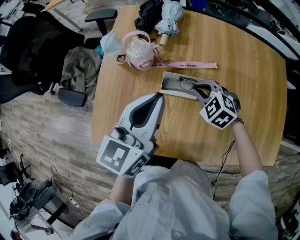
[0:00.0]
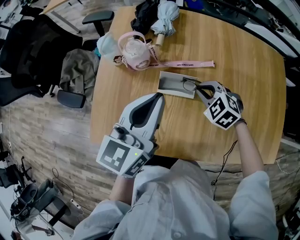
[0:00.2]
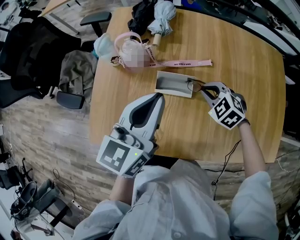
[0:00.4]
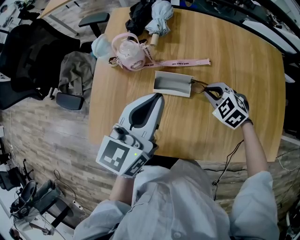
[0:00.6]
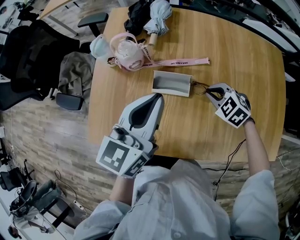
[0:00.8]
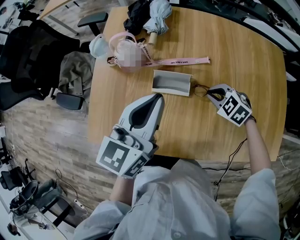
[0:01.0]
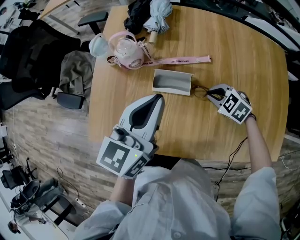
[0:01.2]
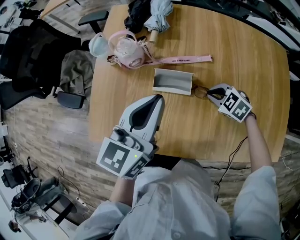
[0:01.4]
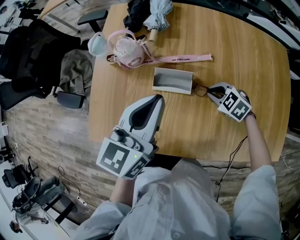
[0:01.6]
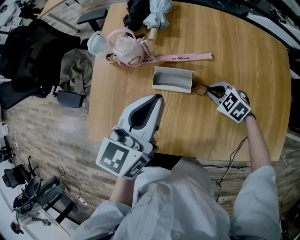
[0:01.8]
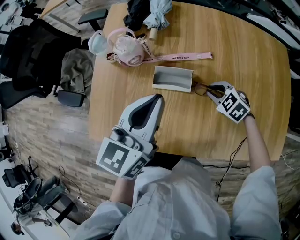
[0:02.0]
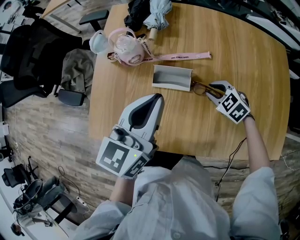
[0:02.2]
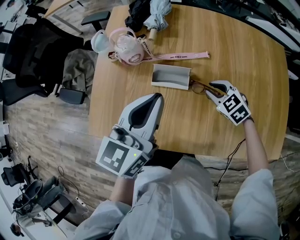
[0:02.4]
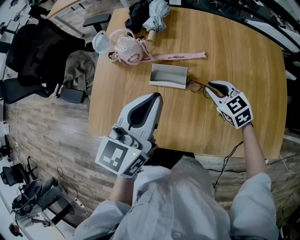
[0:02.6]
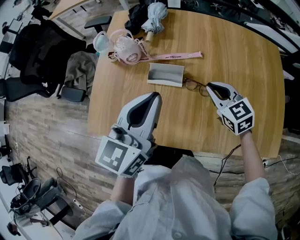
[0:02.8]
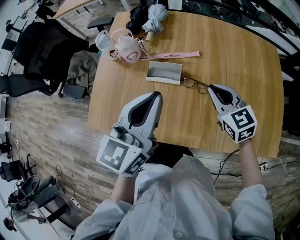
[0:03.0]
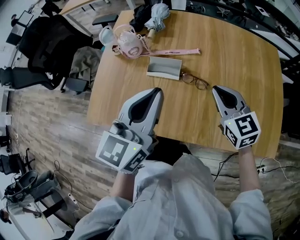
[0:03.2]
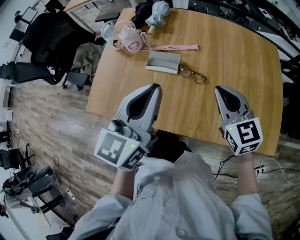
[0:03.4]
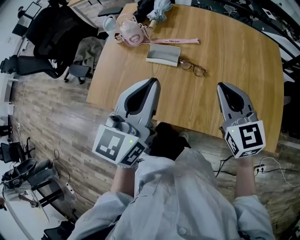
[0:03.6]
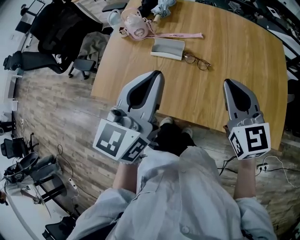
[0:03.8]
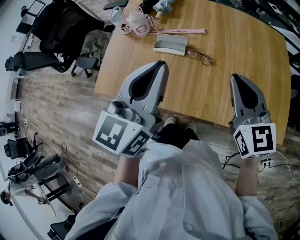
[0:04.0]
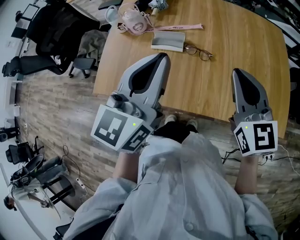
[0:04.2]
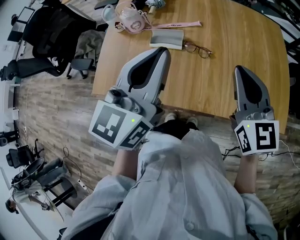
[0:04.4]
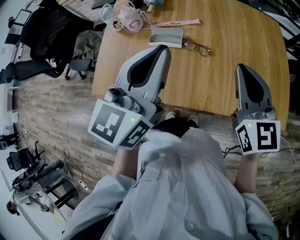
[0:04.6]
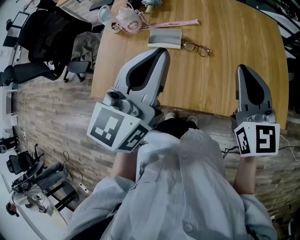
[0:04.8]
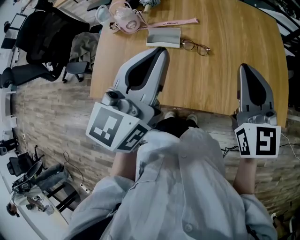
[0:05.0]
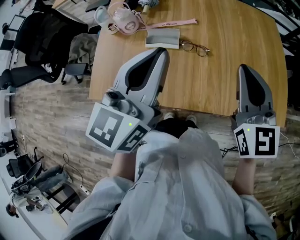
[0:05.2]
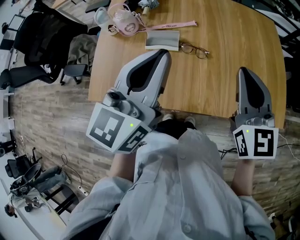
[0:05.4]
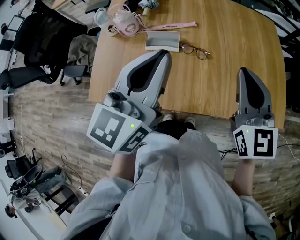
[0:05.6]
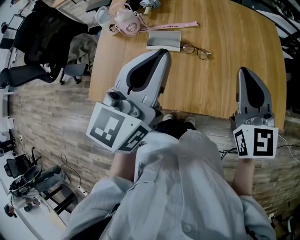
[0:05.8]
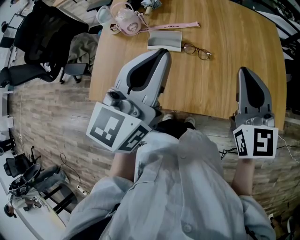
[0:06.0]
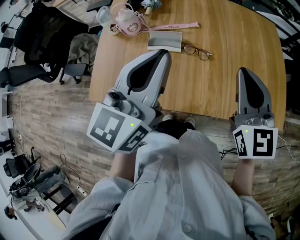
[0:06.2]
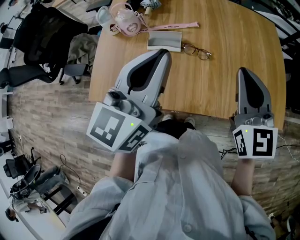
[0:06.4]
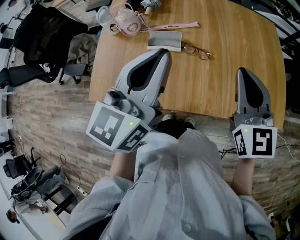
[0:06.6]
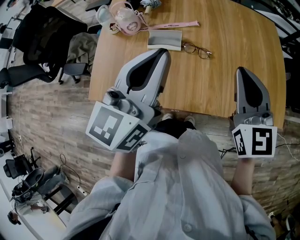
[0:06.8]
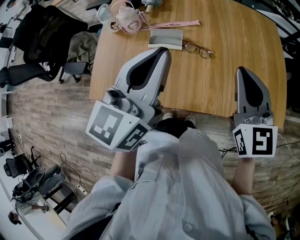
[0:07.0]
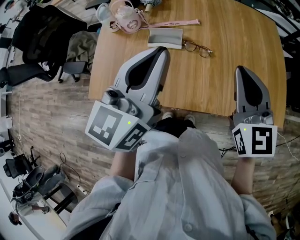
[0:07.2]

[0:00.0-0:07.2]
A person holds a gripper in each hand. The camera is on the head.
0:00.0 to 0:01.4: The right gripper shifts approximately 10 cm to the right, downward and backward.
0:01.4 to 0:02.8: The left gripper shifts roughly 5 cm backward. The right gripper travels upward by roughly 10 cm, and turns by approximately 40 degrees.
0:02.8 to 0:04.4: The left gripper moves backward, upward and to the right, about 15 cm, while the right gripper heads backward, upward and to the right, covering some 25 cm, and rotates roughly 30 degrees.
0:04.4 to 0:05.8: The left gripper moves some 5 cm.
0:05.8 to 0:07.2: The grippers move only a little.

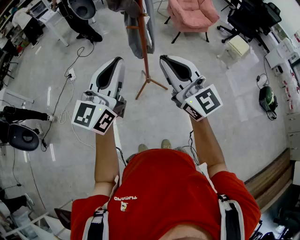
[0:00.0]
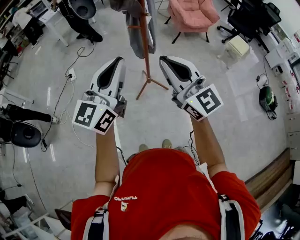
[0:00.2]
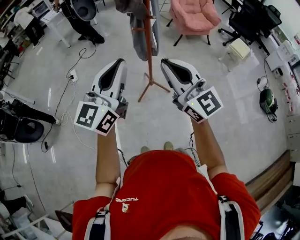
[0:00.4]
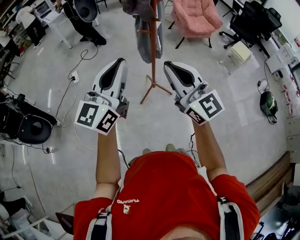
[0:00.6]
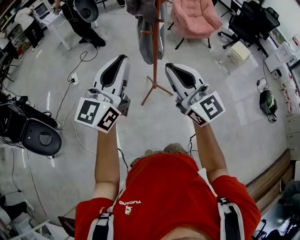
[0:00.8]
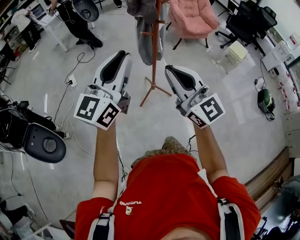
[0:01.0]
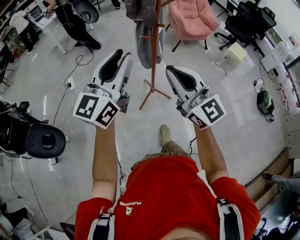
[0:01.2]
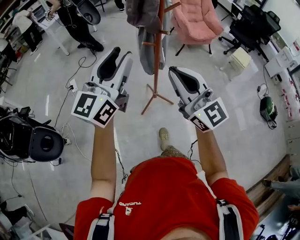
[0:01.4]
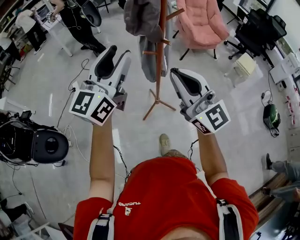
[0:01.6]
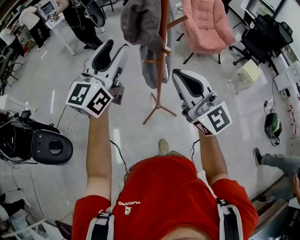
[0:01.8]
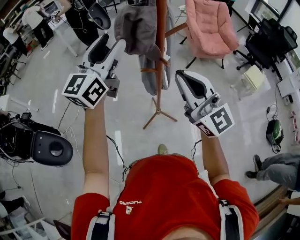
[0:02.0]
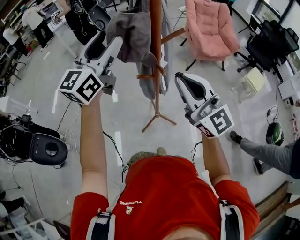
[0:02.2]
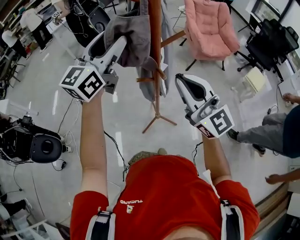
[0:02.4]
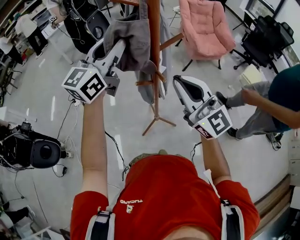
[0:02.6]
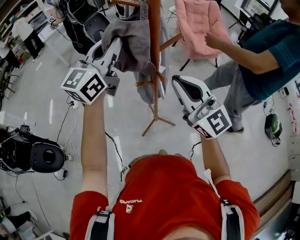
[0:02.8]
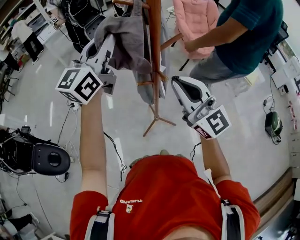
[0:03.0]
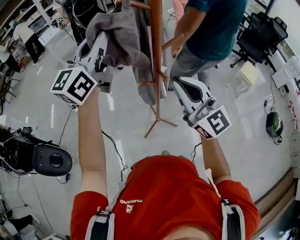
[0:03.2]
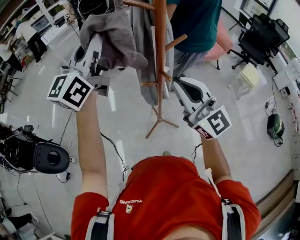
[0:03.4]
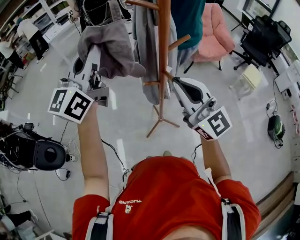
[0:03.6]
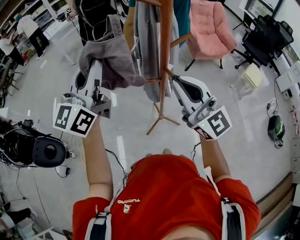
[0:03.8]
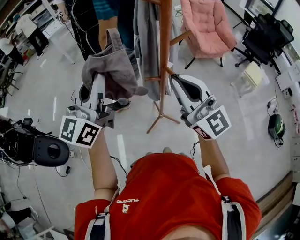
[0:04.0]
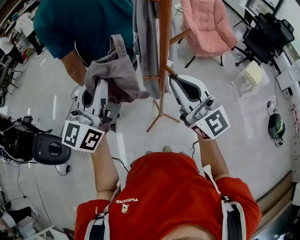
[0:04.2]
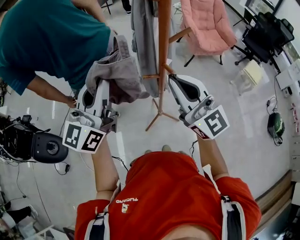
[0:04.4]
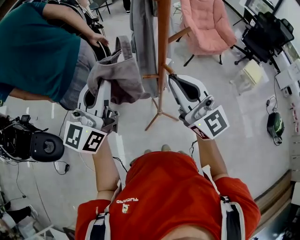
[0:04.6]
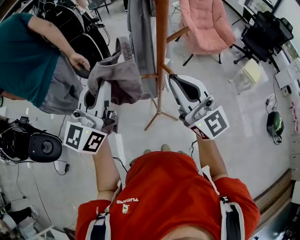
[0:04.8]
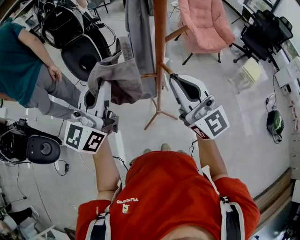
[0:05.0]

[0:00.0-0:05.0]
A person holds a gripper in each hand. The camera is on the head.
0:00.0 to 0:01.6: The grippers both shift forward by roughly 15 cm. The left gripper opens.
0:01.6 to 0:03.4: The right gripper is displaced forward by approximately 10 cm, while the left gripper moves forward and upward, roughly 20 cm, and closes its fingers.
0:03.4 to 0:05.0: The left gripper goes approximately 15 cm downward and backward.

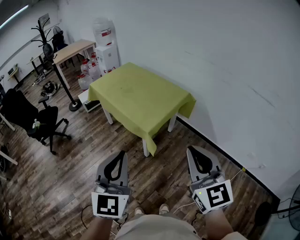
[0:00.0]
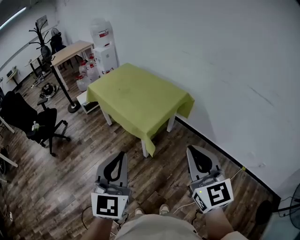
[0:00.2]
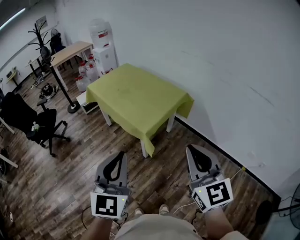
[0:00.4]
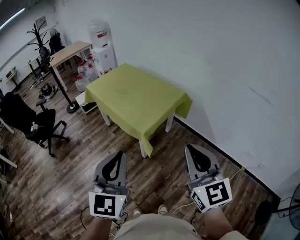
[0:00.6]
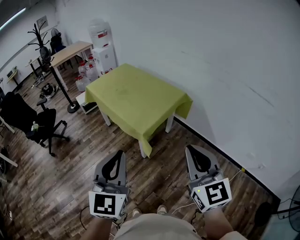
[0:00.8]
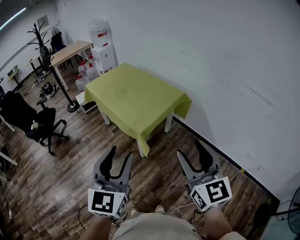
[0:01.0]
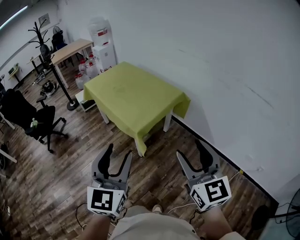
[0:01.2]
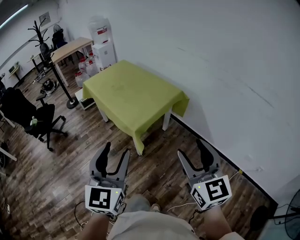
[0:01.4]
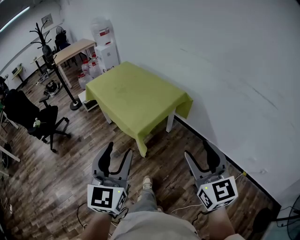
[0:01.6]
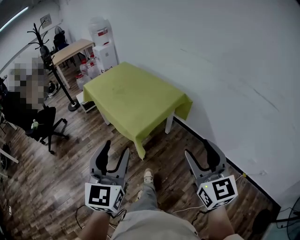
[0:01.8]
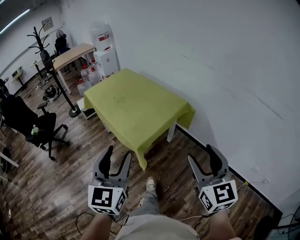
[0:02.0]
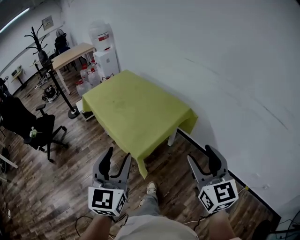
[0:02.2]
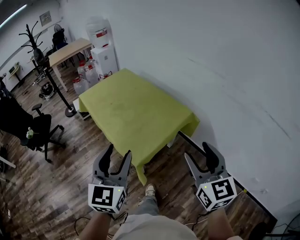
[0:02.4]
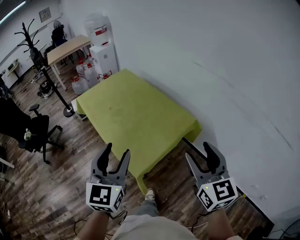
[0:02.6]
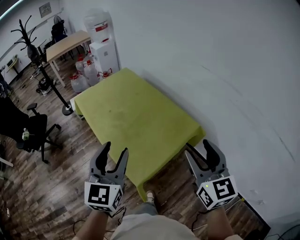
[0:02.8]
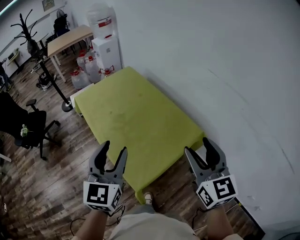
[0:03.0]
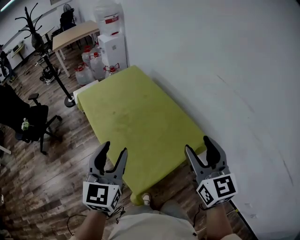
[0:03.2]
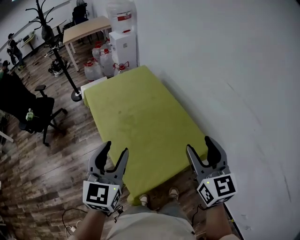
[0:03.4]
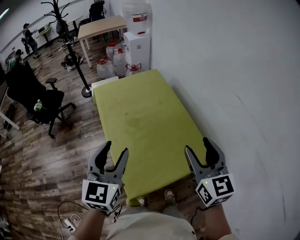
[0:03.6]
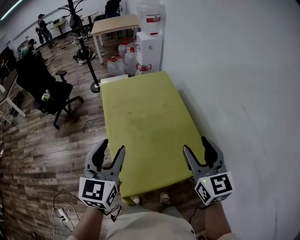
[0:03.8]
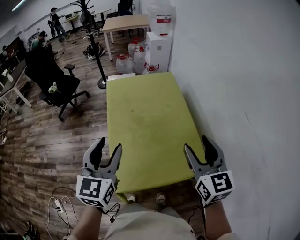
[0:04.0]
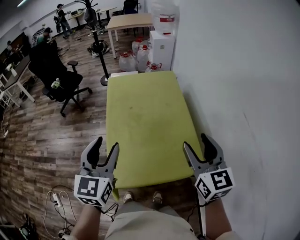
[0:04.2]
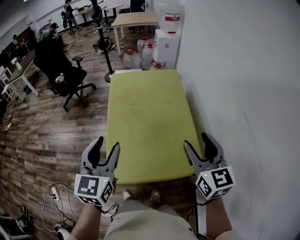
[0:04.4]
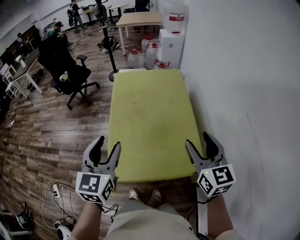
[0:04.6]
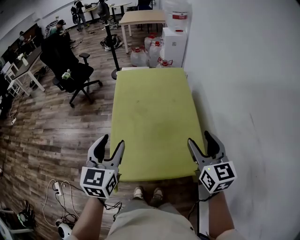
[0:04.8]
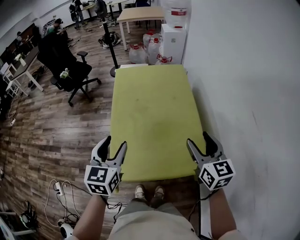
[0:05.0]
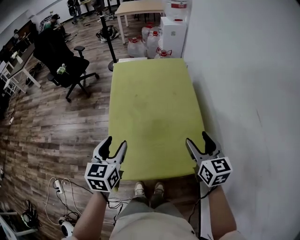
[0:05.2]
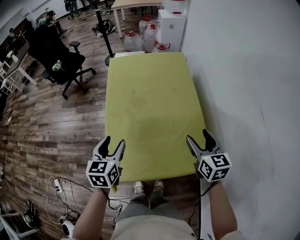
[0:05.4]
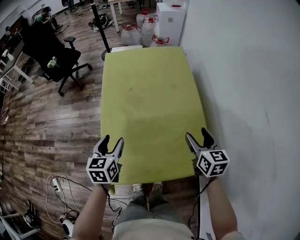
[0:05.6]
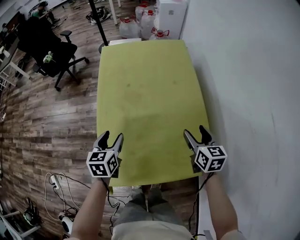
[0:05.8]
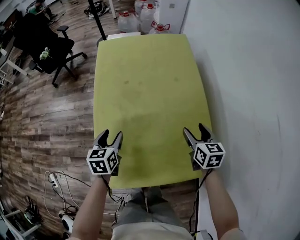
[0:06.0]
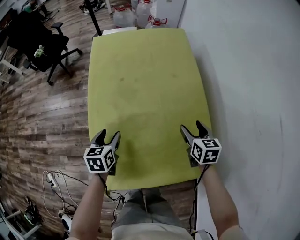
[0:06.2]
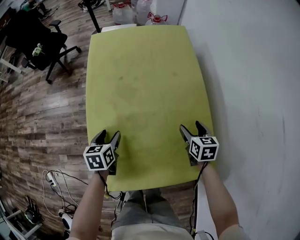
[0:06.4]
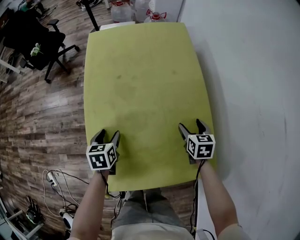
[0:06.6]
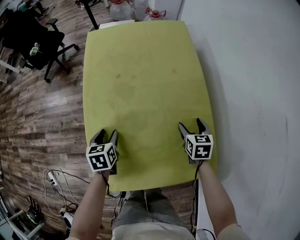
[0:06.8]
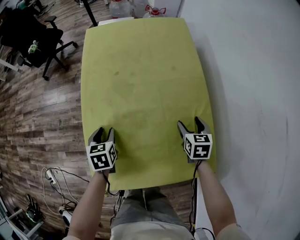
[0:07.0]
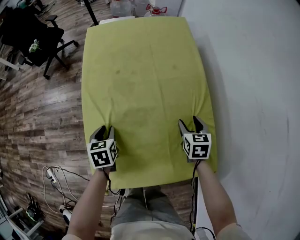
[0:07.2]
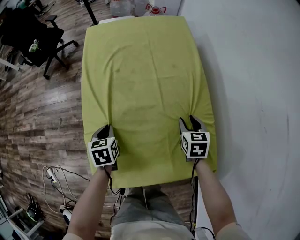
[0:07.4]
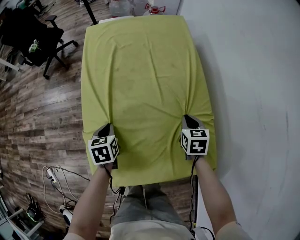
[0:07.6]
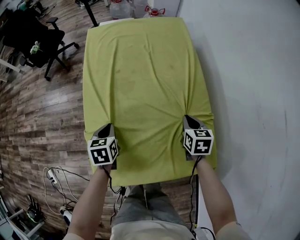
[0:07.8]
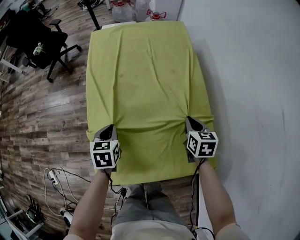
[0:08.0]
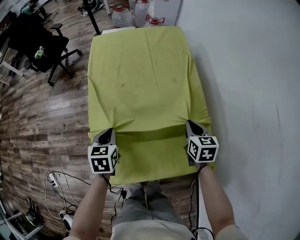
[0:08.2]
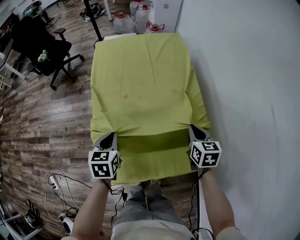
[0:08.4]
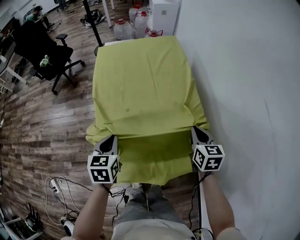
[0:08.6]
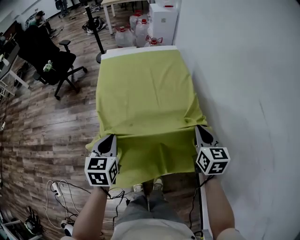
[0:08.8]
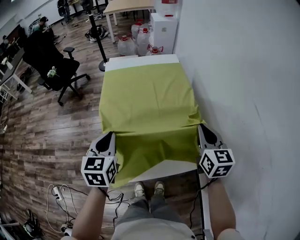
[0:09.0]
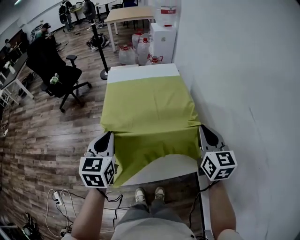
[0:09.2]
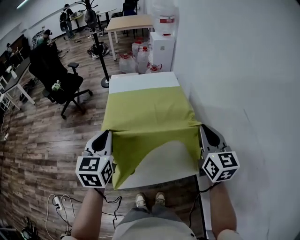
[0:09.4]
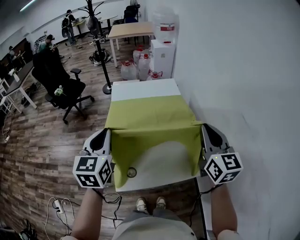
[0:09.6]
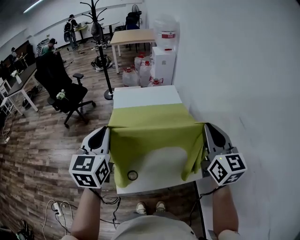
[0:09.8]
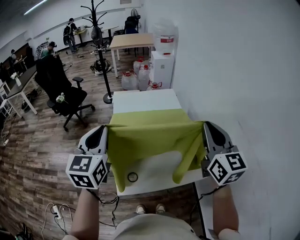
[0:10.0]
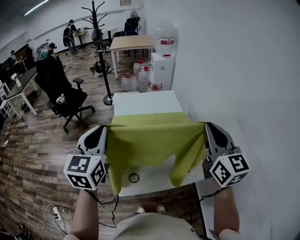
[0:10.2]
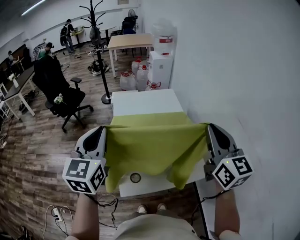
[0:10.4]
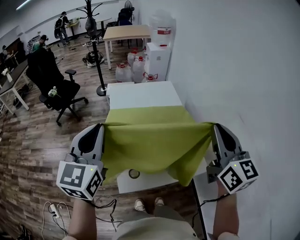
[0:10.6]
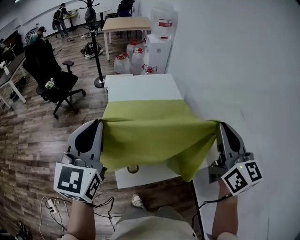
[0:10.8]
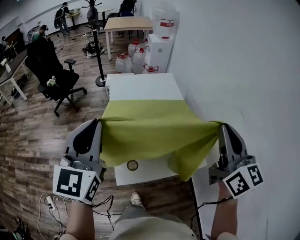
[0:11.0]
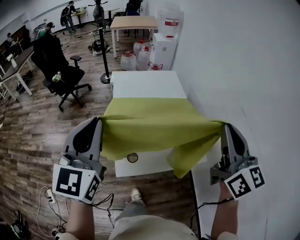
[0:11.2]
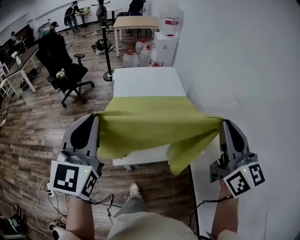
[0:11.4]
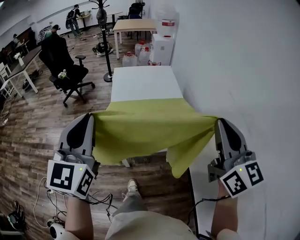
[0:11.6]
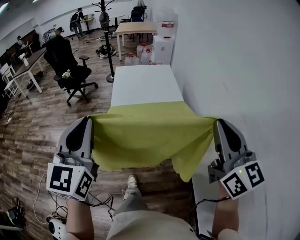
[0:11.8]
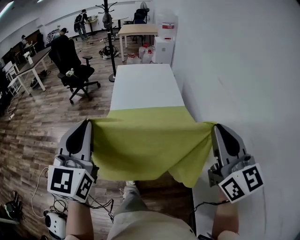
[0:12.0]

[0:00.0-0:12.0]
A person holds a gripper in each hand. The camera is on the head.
0:00.0 to 0:01.6: The two grippers go roughly 10 cm to the right. The left gripper opens up; the right gripper opens.
0:01.6 to 0:03.0: The pair of grippers is taken forward, approximately 50 cm.
0:03.0 to 0:04.4: The left gripper changes place by about 5 cm, and turns by about 30 degrees; the right gripper ends up roughly 20 cm from where it was, and swivels about 30 degrees.
0:04.4 to 0:06.0: Both grippers travel together downward and forward, about 35 cm. The right gripper changes its angle by some 30 degrees; the left gripper turns by about 30 degrees.
0:06.0 to 0:07.6: The two grippers go about 10 cm downward. The left gripper closes its fingers. The right gripper closes its fingers.
0:07.6 to 0:09.0: Both grippers travel together upward, approximately 25 cm. The right gripper changes its angle by roughly 30 degrees, while the left gripper turns by some 30 degrees.
0:09.0 to 0:10.4: Both grippers travel together upward, approximately 25 cm. The right gripper turns by roughly 20 degrees, while the left gripper changes its angle by roughly 20 degrees.
0:10.4 to 0:12.0: The two grippers go about 40 cm backward.
